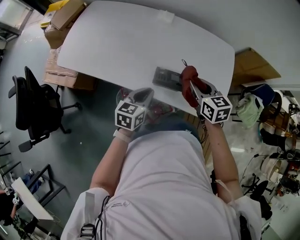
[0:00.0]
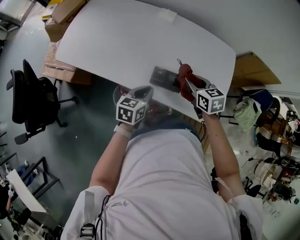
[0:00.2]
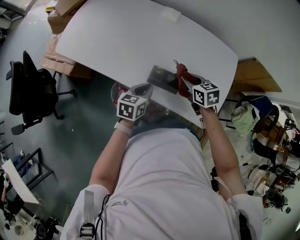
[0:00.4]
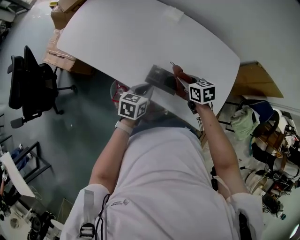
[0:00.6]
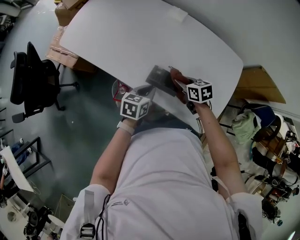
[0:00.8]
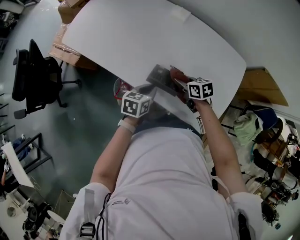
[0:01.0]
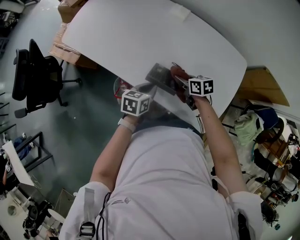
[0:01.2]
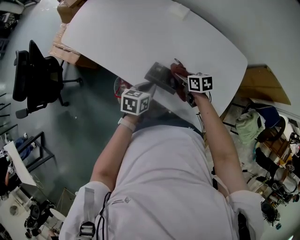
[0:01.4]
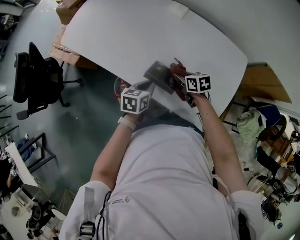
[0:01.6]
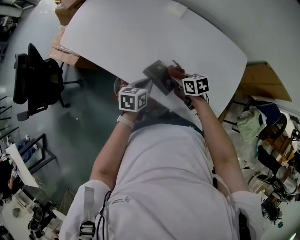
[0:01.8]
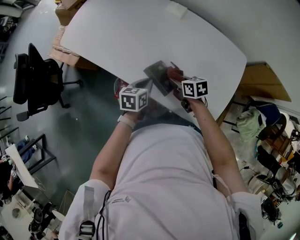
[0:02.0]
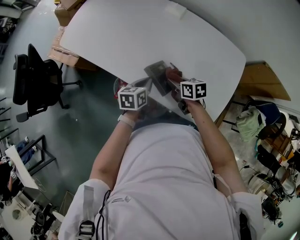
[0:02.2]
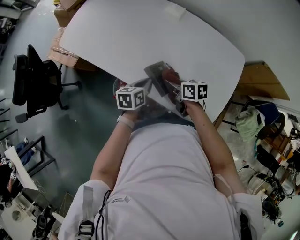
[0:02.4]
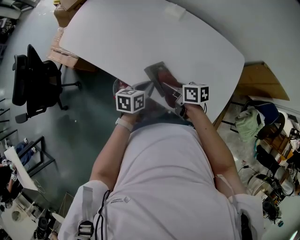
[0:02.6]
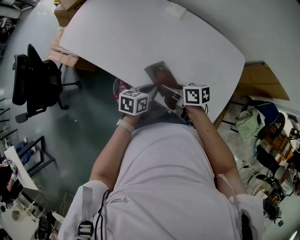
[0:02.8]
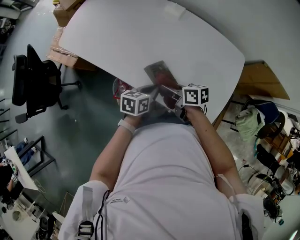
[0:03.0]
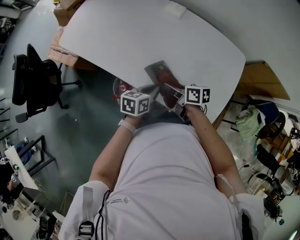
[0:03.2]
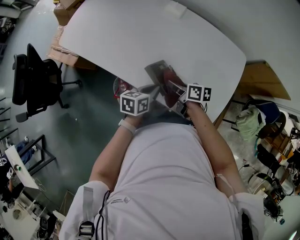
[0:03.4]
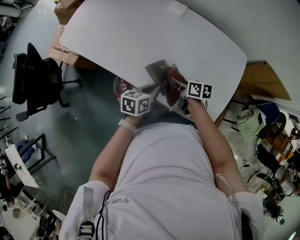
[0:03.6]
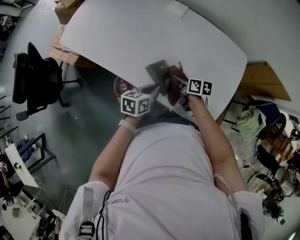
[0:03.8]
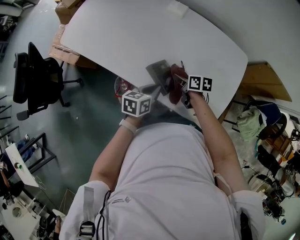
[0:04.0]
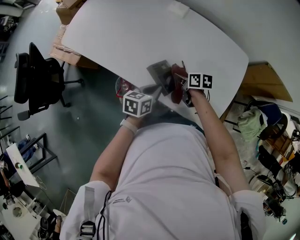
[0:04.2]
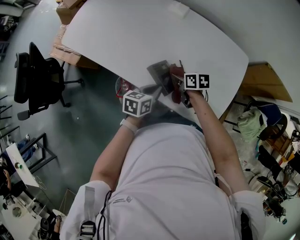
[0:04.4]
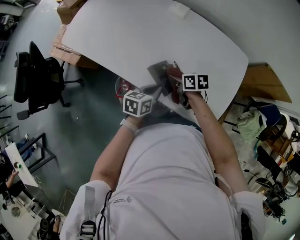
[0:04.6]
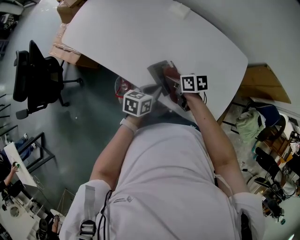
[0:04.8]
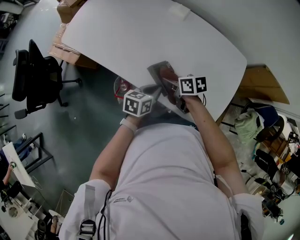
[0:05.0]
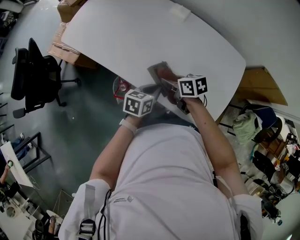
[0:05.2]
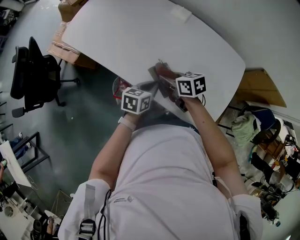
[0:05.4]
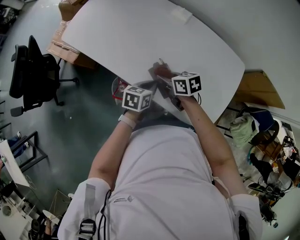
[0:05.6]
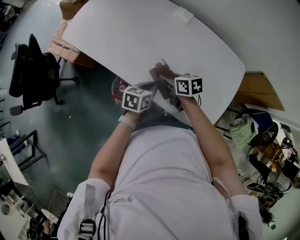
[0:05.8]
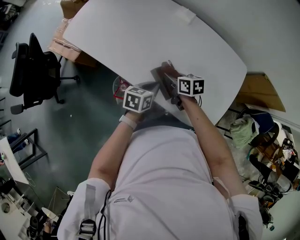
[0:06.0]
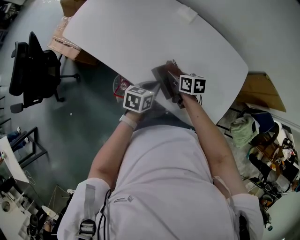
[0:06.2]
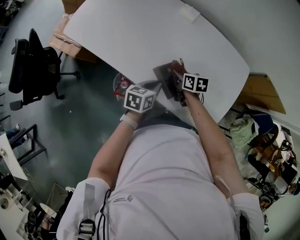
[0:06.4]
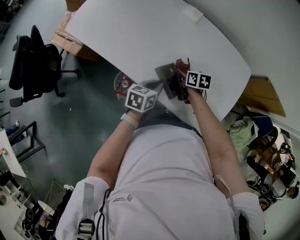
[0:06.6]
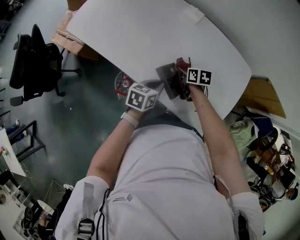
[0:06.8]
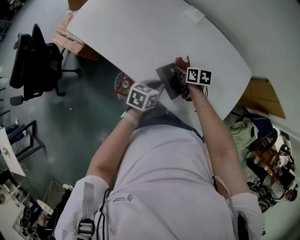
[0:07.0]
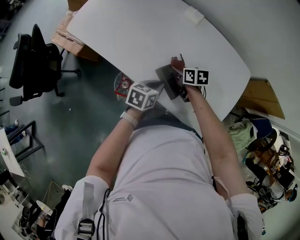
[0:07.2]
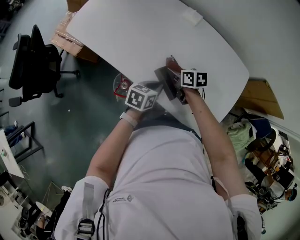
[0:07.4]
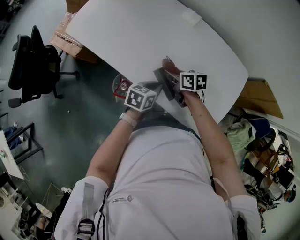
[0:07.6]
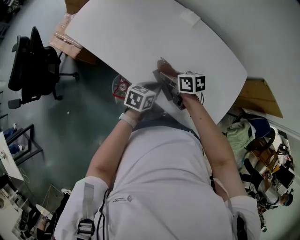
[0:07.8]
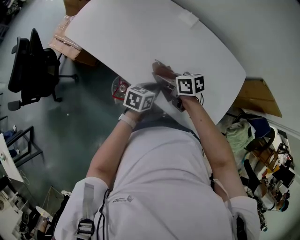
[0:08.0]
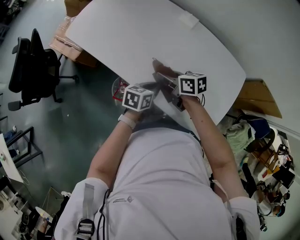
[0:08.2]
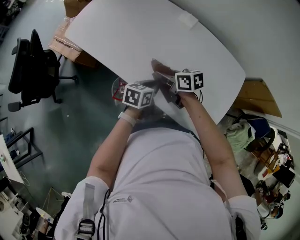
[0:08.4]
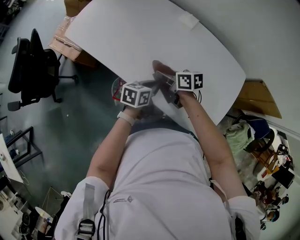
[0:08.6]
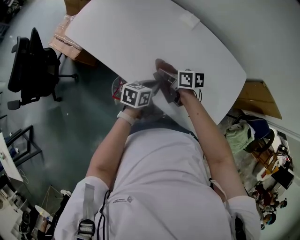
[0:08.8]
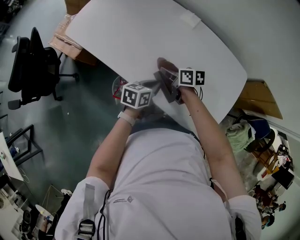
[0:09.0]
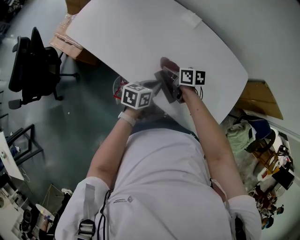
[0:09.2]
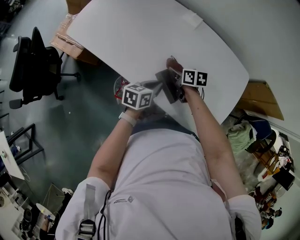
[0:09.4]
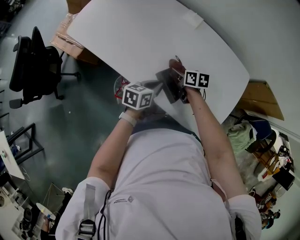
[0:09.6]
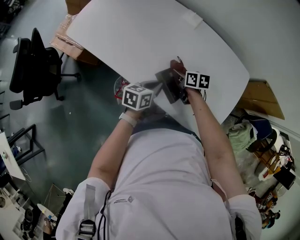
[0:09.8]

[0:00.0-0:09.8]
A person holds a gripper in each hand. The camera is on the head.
0:00.0 to 0:01.4: The left gripper moves downward and to the right, roughly 10 cm, and turns by roughly 20 degrees; the right gripper travels downward and forward by some 20 cm, and changes its angle by roughly 30 degrees.
0:01.4 to 0:02.8: The right gripper is displaced upward, to the left and backward by approximately 15 cm, and swivels some 20 degrees.
0:02.8 to 0:04.2: The right gripper goes approximately 15 cm downward, to the right and forward.
0:04.2 to 0:05.6: The right gripper goes approximately 15 cm to the left and upward, and turns by some 20 degrees.
0:05.6 to 0:07.0: The right gripper shifts roughly 10 cm downward, to the right and forward.
0:07.0 to 0:08.4: The right gripper is displaced to the left and upward by roughly 15 cm, and changes its angle by approximately 20 degrees.
0:08.4 to 0:09.8: The right gripper travels downward and to the right by approximately 10 cm.

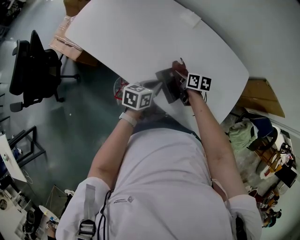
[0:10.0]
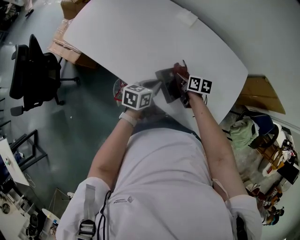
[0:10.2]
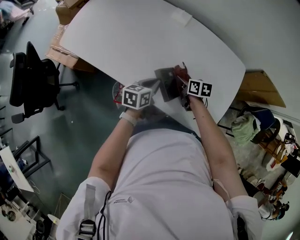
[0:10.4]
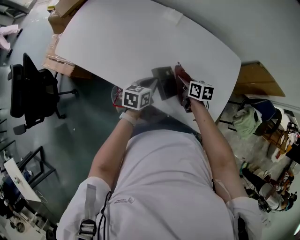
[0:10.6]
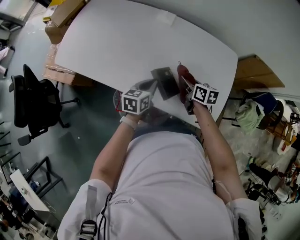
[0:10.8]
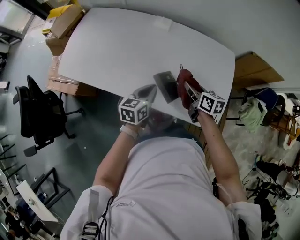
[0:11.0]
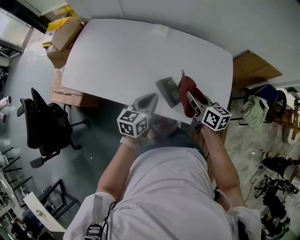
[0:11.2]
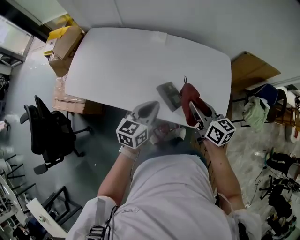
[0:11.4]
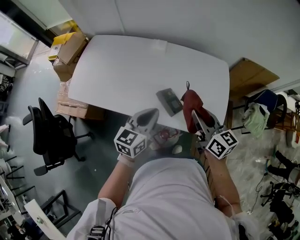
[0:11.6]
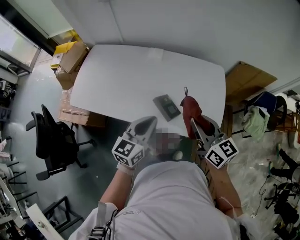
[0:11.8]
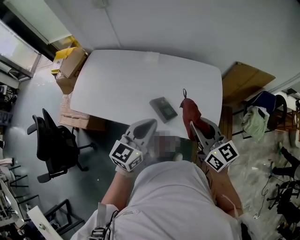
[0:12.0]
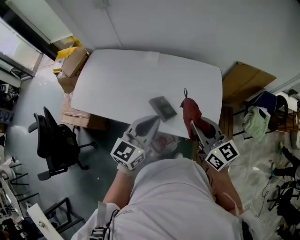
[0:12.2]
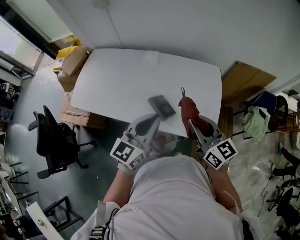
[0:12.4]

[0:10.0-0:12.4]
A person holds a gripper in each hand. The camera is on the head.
0:10.0 to 0:11.2: The right gripper travels upward and backward by approximately 20 cm, and swivels about 30 degrees. The left gripper goes about 10 cm upward, and turns by roughly 20 degrees.
0:11.2 to 0:12.4: The right gripper heads upward and backward, covering about 20 cm, and changes its angle by about 30 degrees, while the left gripper moves upward, approximately 20 cm, and swivels roughly 30 degrees.

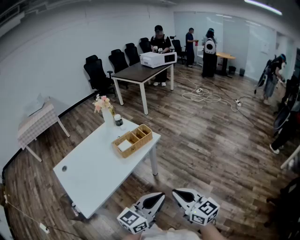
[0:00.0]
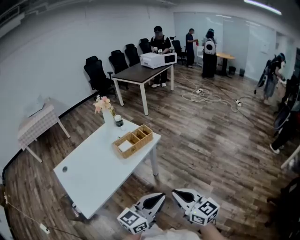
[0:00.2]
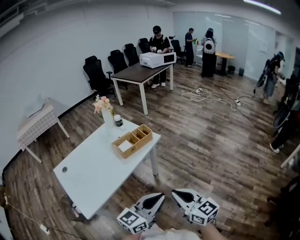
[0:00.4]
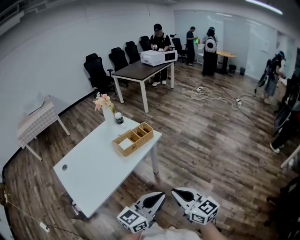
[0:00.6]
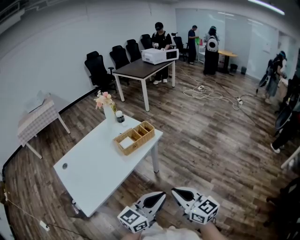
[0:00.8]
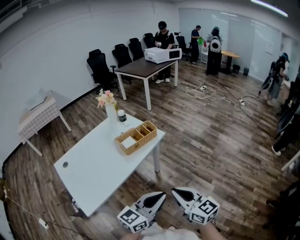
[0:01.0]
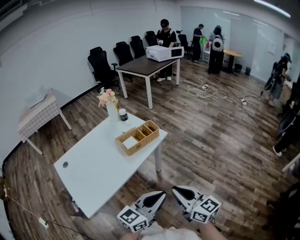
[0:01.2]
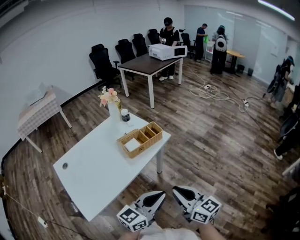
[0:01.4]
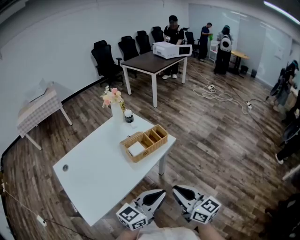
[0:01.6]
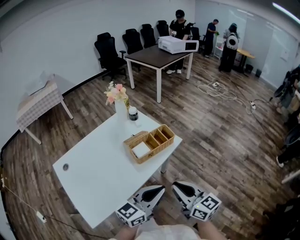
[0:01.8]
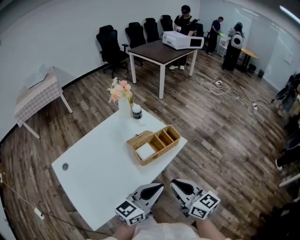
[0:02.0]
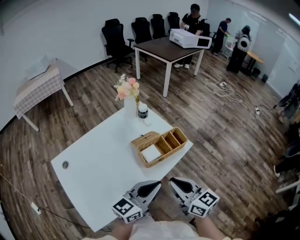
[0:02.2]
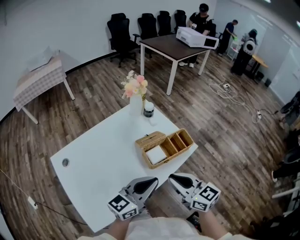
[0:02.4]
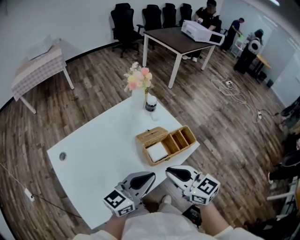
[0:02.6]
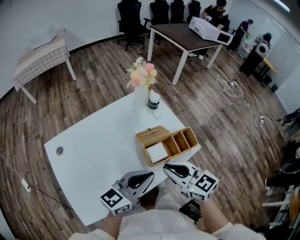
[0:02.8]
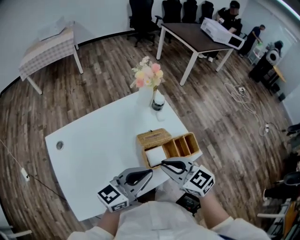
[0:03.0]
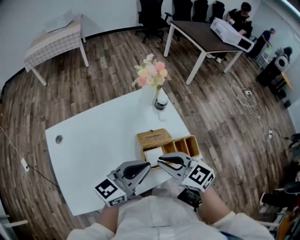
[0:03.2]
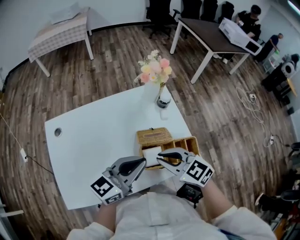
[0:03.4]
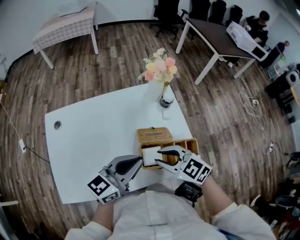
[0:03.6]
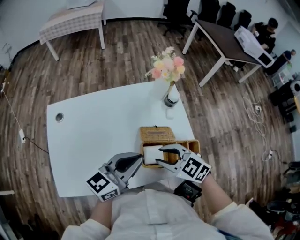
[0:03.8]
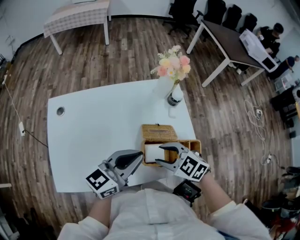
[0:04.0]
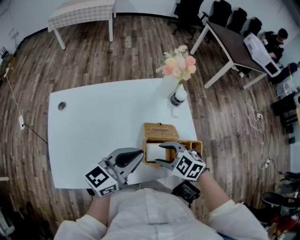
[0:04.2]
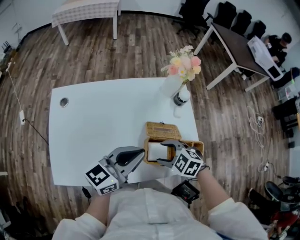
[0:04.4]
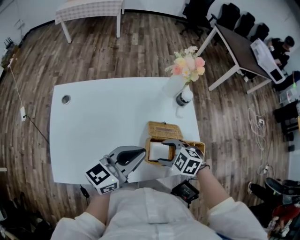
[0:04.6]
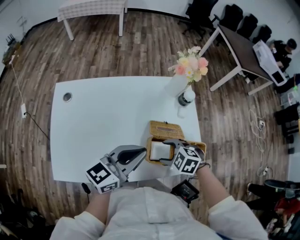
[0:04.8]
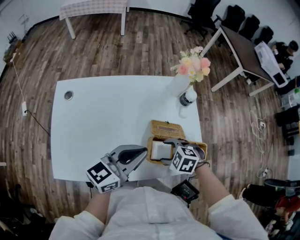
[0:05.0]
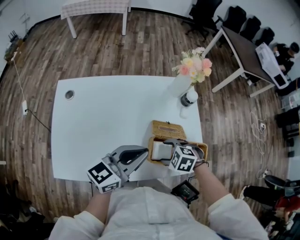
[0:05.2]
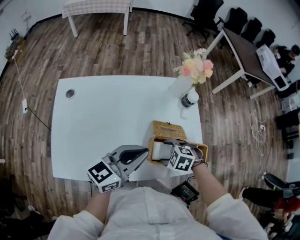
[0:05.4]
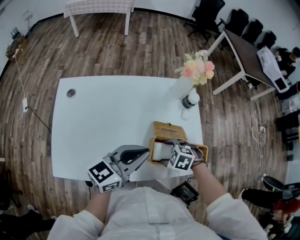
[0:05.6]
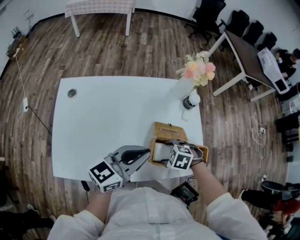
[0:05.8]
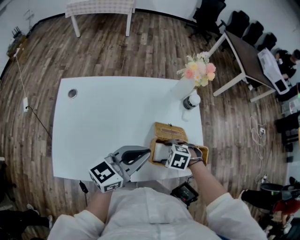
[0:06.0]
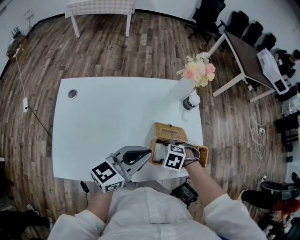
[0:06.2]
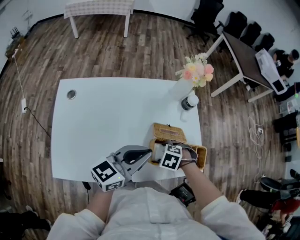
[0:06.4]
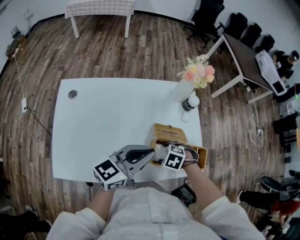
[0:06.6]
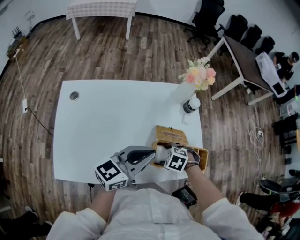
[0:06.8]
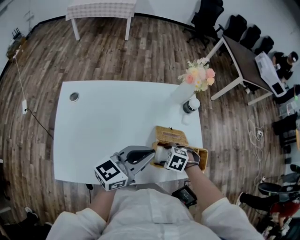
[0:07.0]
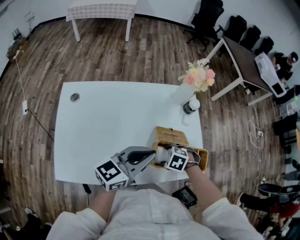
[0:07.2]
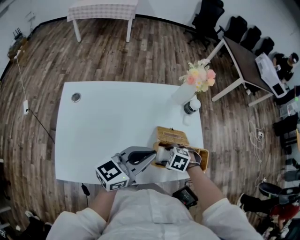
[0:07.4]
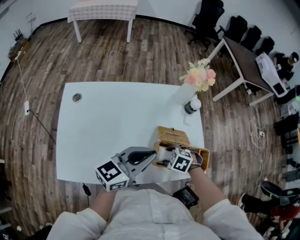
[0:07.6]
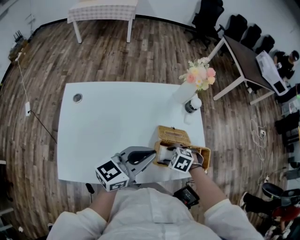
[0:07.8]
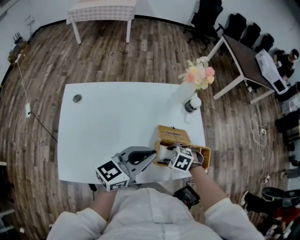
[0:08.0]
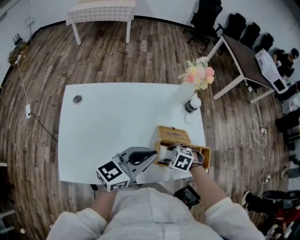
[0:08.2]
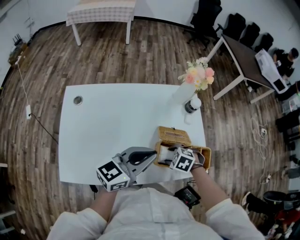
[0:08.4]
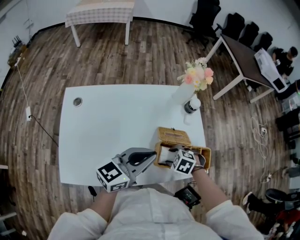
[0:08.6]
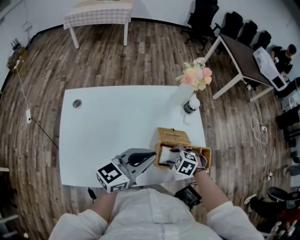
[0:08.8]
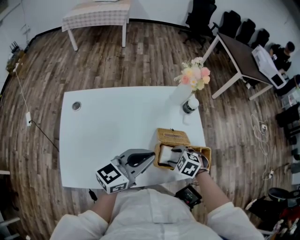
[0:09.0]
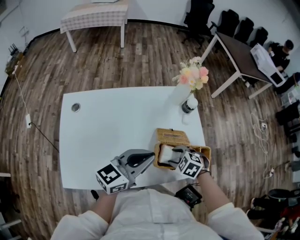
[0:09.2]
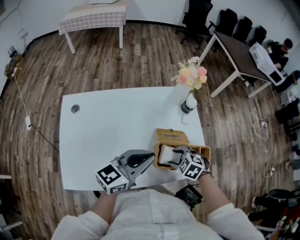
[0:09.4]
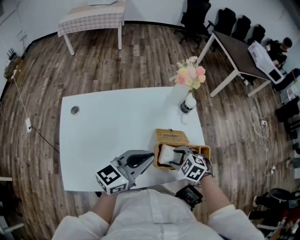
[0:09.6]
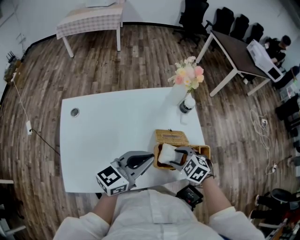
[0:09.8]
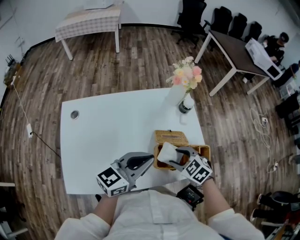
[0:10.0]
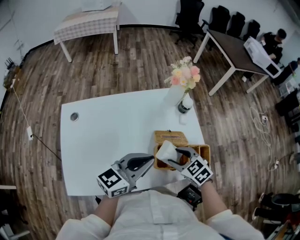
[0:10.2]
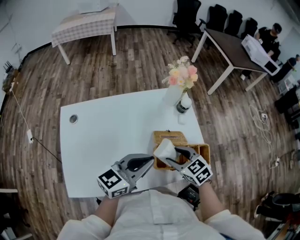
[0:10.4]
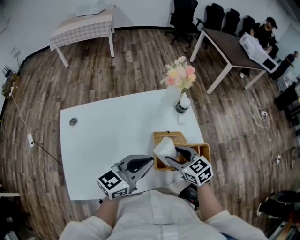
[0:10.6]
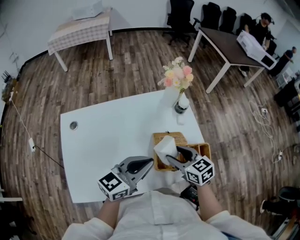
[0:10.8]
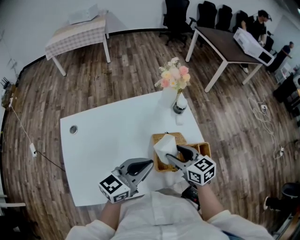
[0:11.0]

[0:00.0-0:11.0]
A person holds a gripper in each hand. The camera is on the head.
0:00.0 to 0:01.6: The grippers both shift forward and to the left by some 15 cm.
0:01.6 to 0:03.2: The left gripper changes place by some 35 cm, and changes its angle by approximately 20 degrees. The right gripper changes place by roughly 35 cm, and turns by about 50 degrees.
0:03.2 to 0:04.8: The left gripper shifts by some 5 cm, while the right gripper moves downward, about 15 cm, points its fingers approximately 40 degrees further downward, and opens.
0:04.8 to 0:06.2: The right gripper shifts approximately 5 cm downward.
0:06.2 to 0:09.4: There are only small adjustments of the grippers.
0:09.4 to 0:11.0: The right gripper goes some 10 cm upward, and points its fingers about 40 degrees further upward.
